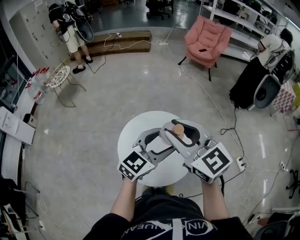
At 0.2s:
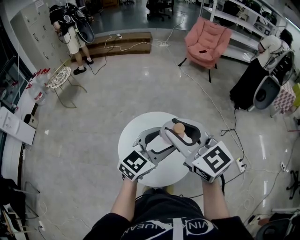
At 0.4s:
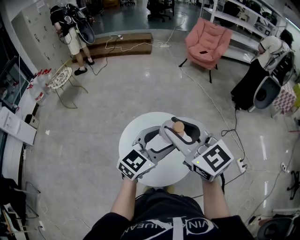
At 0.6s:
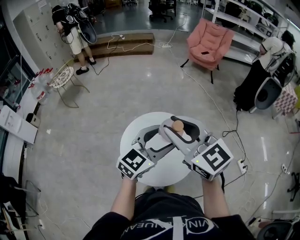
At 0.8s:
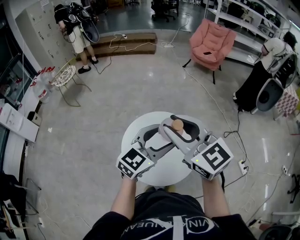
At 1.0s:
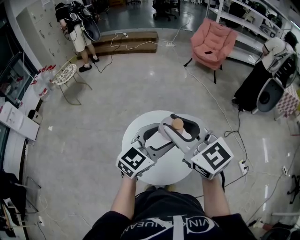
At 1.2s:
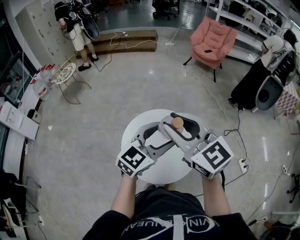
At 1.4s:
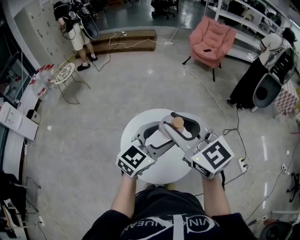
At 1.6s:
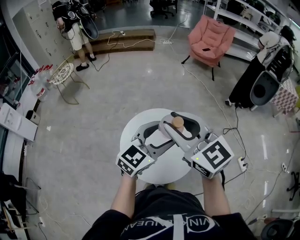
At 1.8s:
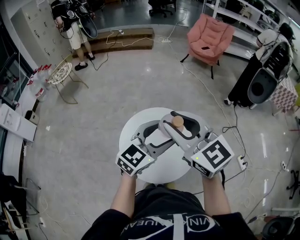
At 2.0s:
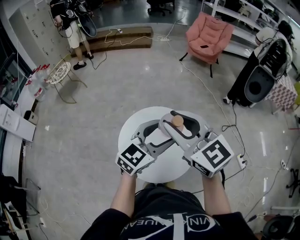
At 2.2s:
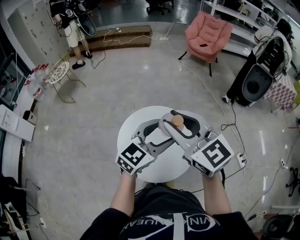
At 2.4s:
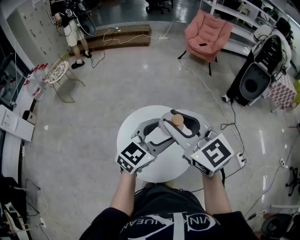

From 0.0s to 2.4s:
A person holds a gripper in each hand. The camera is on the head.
From 0.0s to 2.4s: There are only small adjustments of the grippers.

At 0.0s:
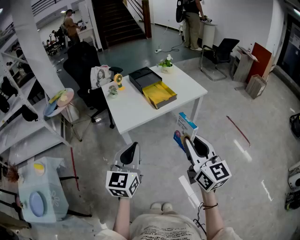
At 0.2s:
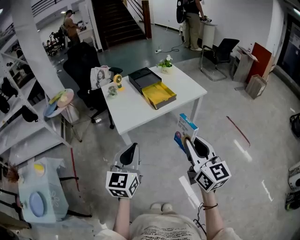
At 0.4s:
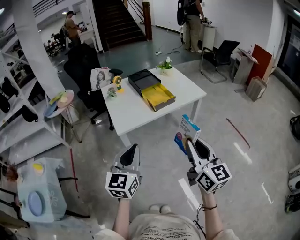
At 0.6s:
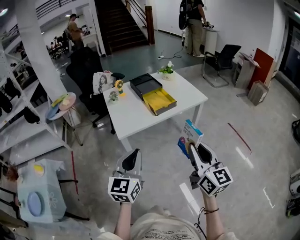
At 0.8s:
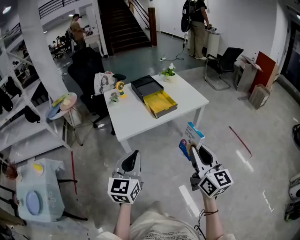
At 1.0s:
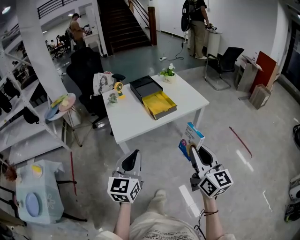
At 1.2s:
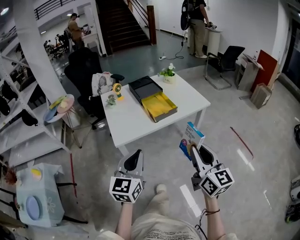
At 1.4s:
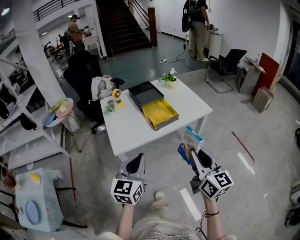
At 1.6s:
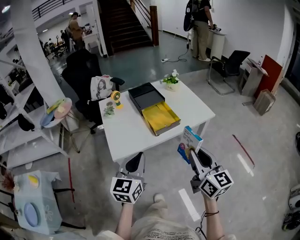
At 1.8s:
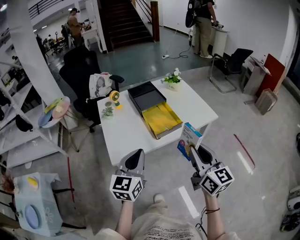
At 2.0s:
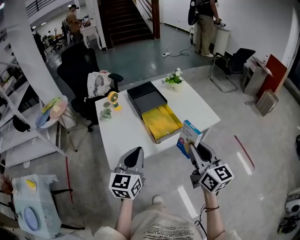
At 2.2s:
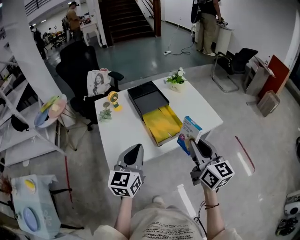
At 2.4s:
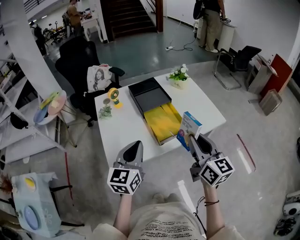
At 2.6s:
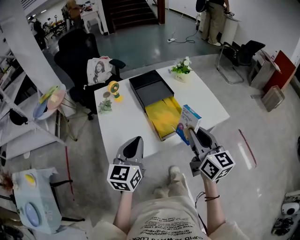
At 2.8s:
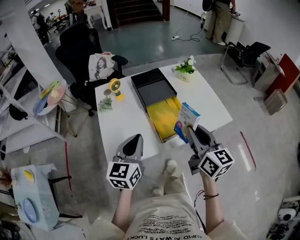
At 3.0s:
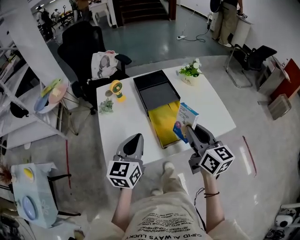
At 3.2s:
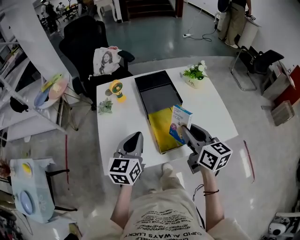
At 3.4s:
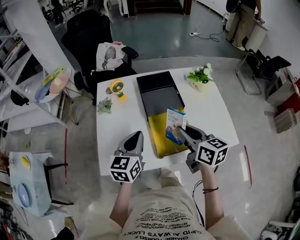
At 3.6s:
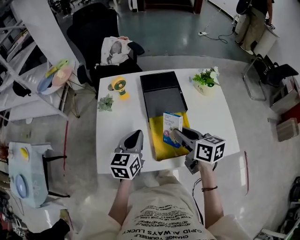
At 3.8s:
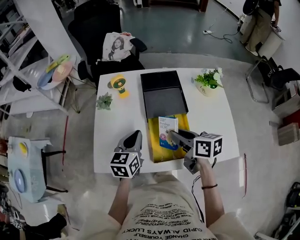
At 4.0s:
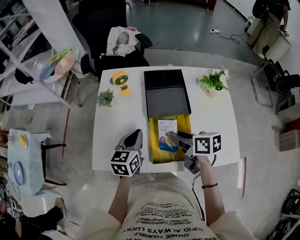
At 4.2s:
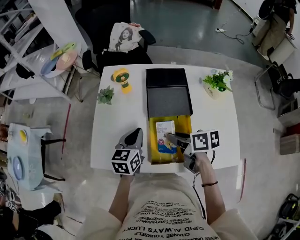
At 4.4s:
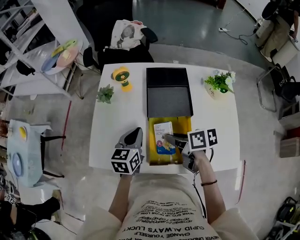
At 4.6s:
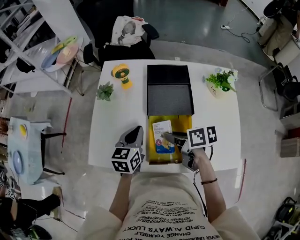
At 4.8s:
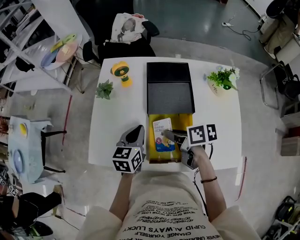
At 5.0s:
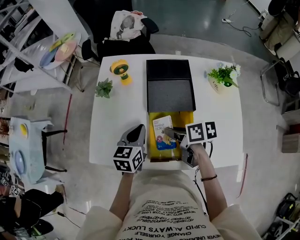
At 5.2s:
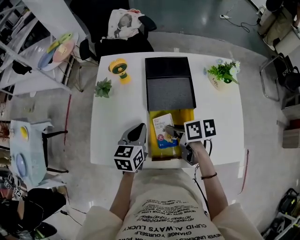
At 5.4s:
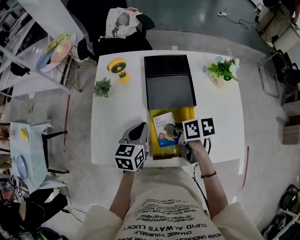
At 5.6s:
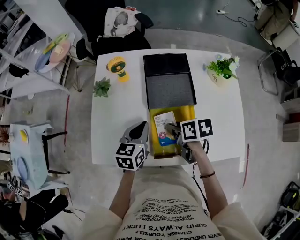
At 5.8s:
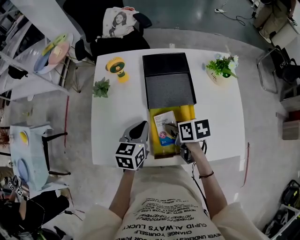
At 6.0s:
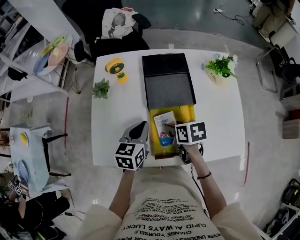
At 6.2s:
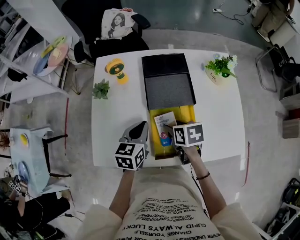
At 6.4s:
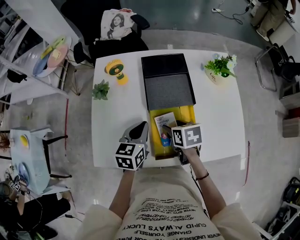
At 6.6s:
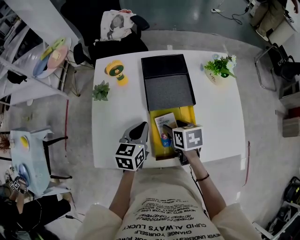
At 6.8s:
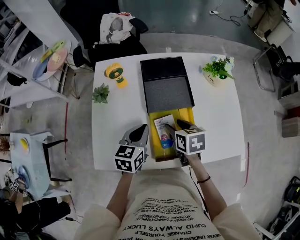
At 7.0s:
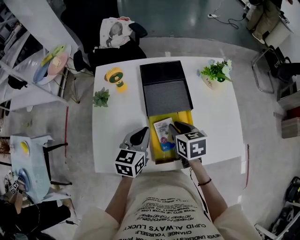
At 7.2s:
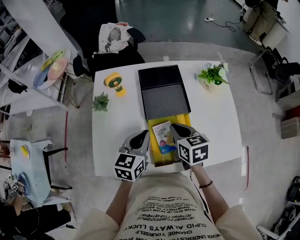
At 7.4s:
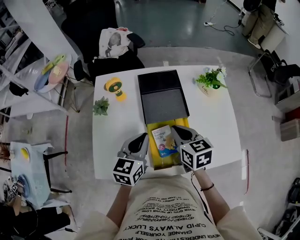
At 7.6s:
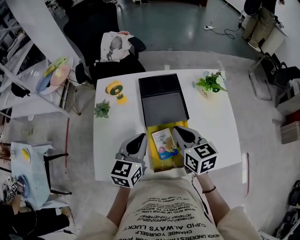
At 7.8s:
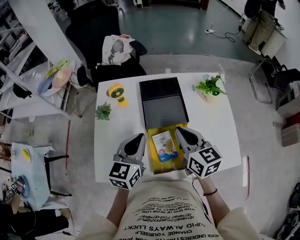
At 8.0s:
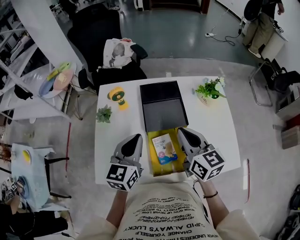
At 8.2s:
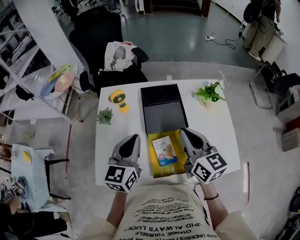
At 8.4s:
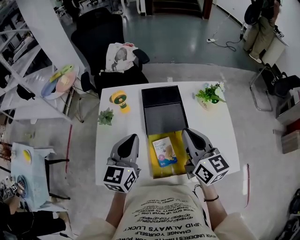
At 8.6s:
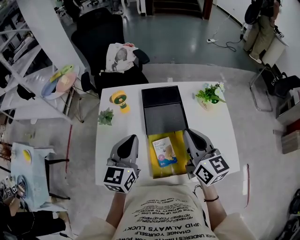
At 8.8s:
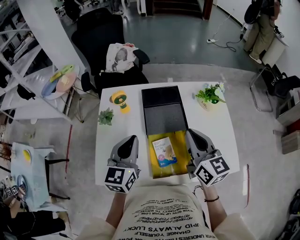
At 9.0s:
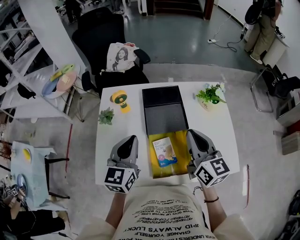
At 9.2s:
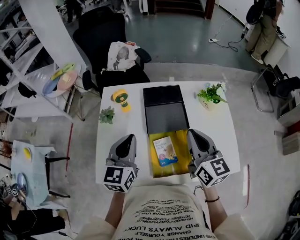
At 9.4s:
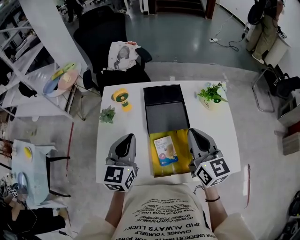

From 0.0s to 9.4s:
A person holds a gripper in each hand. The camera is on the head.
From 0.0s to 1.6s: Both grippers travel together forward, some 15 cm.
From 1.6s to 3.2s: The grippers both shift forward by roughly 30 cm. The right gripper swivels roughly 30 degrees.
From 3.2s to 4.8s: Both grippers travel together downward, about 15 cm. The right gripper swivels roughly 60 degrees; the left gripper turns by roughly 20 degrees.
From 4.8s to 6.2s: The right gripper changes its angle by approximately 30 degrees, and opens its fingers.
From 6.2s to 7.8s: Both grippers travel together upward, some 15 cm. The right gripper tilts its fingers roughly 40 degrees upward, and closes up.
From 7.8s to 9.4s: The left gripper changes place by about 5 cm. The right gripper moves upward, some 5 cm.

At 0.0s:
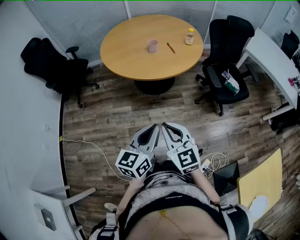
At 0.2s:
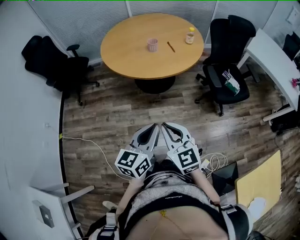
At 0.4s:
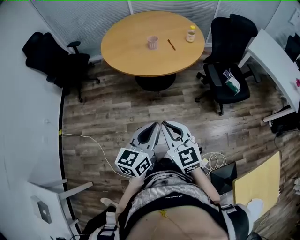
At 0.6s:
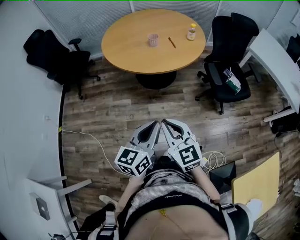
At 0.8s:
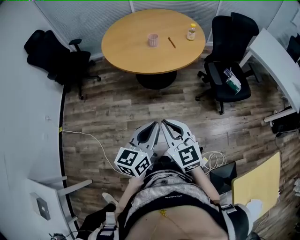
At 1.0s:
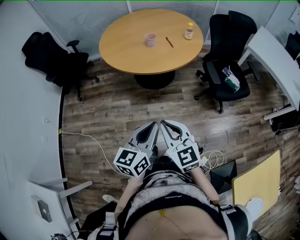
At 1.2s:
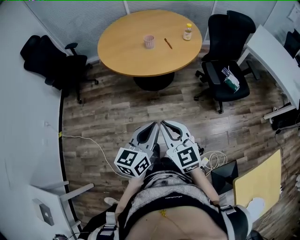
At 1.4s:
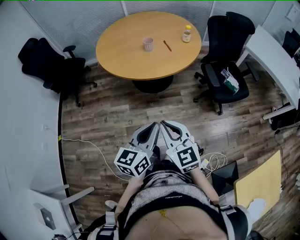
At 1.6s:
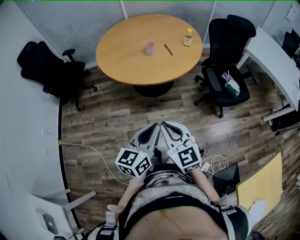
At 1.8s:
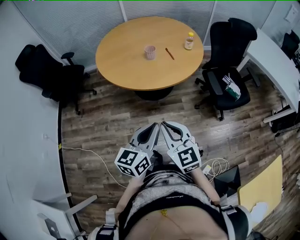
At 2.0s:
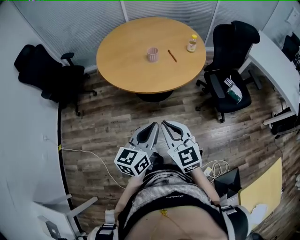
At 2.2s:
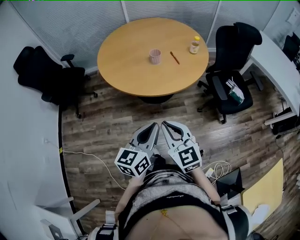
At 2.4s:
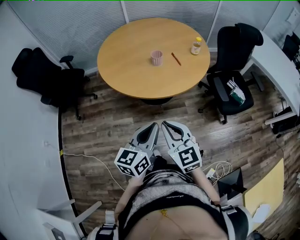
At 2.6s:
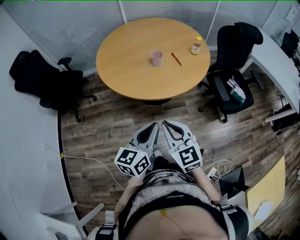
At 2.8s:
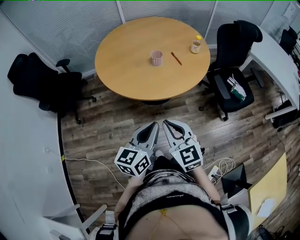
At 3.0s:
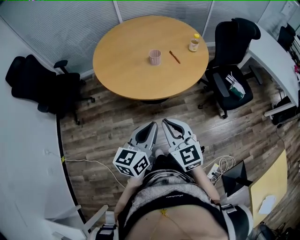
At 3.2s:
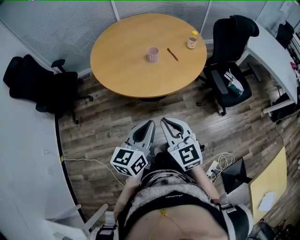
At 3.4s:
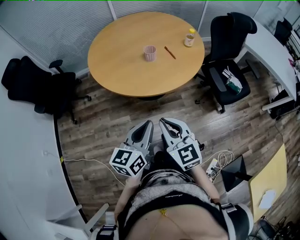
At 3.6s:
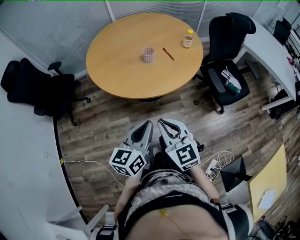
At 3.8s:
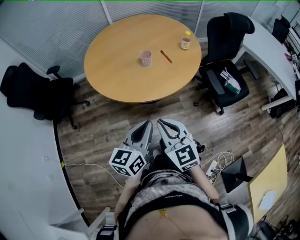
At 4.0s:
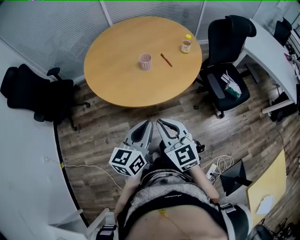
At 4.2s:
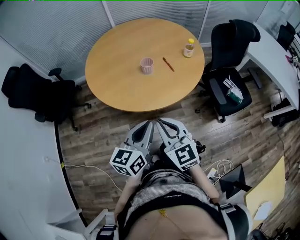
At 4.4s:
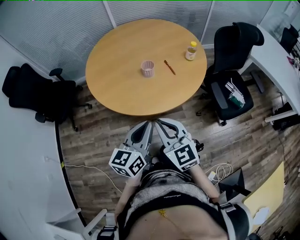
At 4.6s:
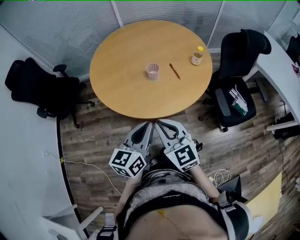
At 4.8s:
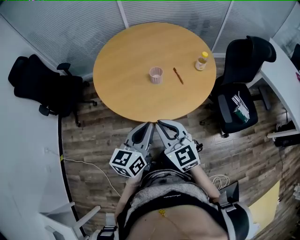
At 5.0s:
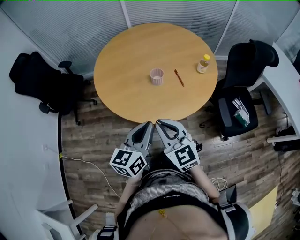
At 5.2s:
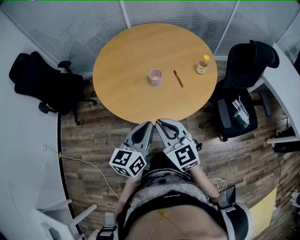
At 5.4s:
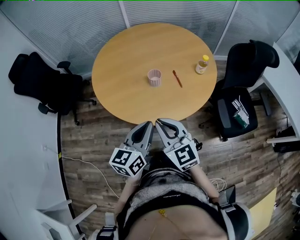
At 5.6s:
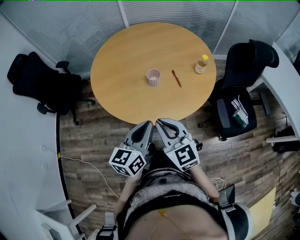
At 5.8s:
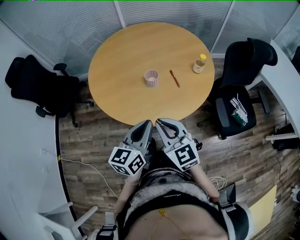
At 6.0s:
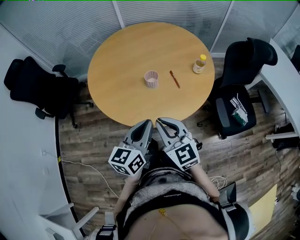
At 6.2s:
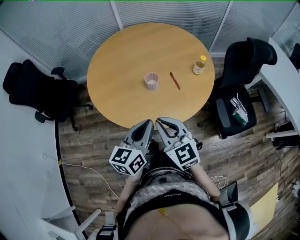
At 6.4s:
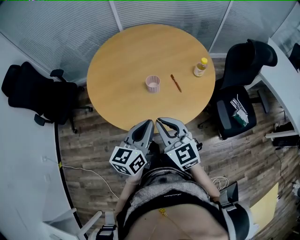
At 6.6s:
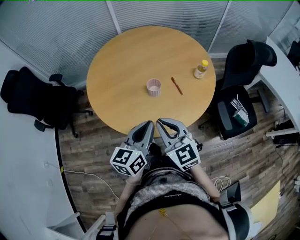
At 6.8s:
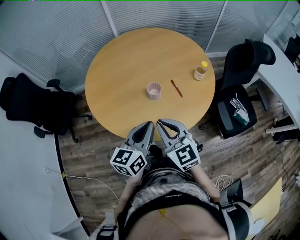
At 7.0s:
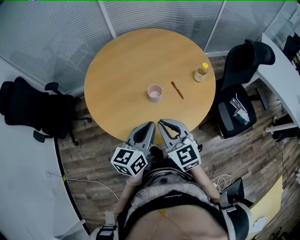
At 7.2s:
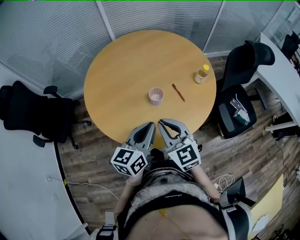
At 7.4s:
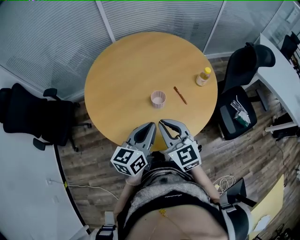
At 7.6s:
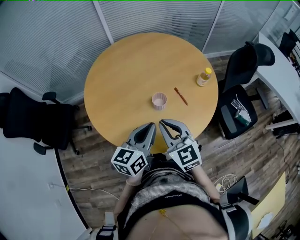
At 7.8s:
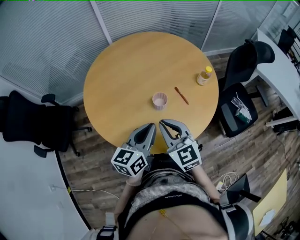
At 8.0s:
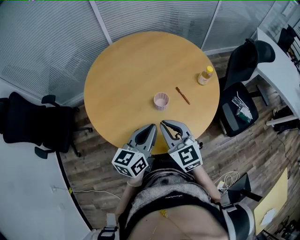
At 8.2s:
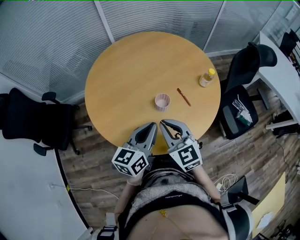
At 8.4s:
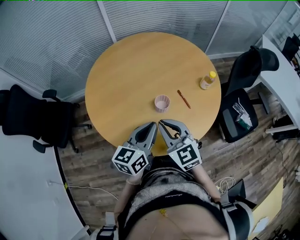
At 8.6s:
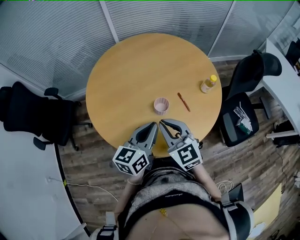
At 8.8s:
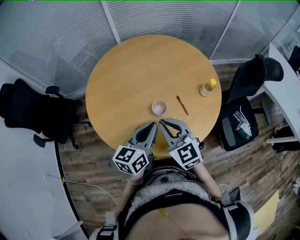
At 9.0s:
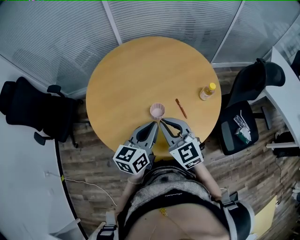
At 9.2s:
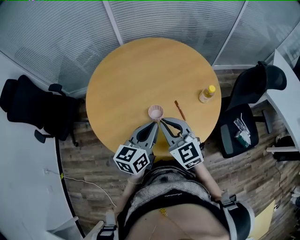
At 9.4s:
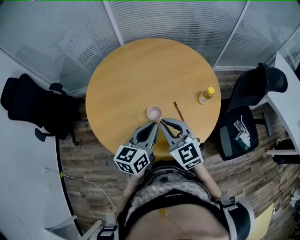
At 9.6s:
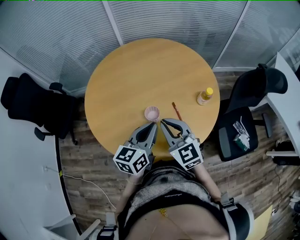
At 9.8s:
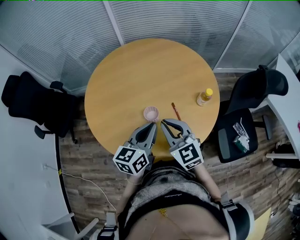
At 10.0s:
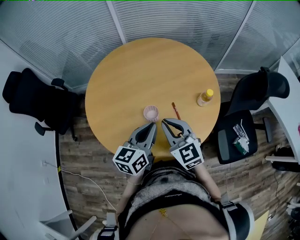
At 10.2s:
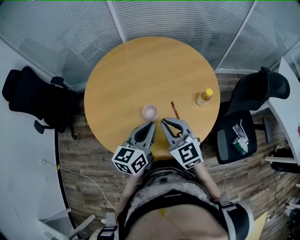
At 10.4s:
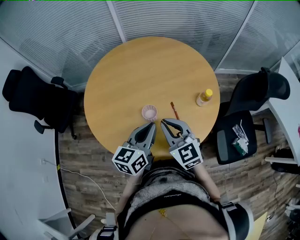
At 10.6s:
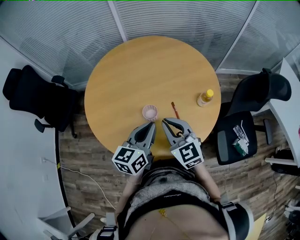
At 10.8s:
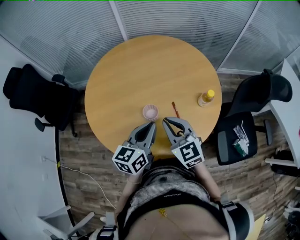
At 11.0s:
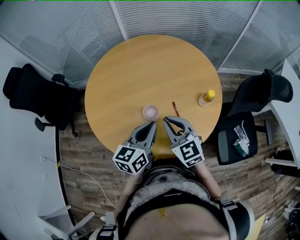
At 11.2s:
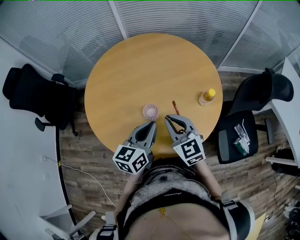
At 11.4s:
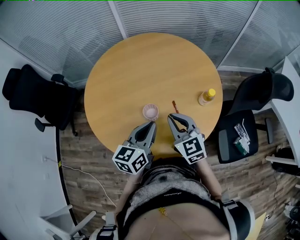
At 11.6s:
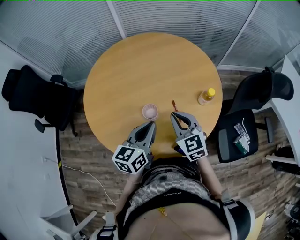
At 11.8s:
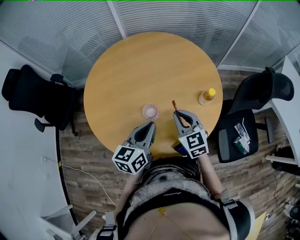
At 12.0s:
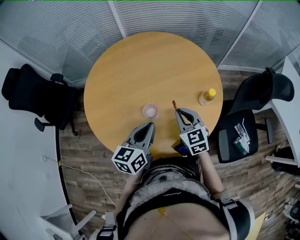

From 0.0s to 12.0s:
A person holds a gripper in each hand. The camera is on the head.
From 0.0s to 1.6s: The two grippers go roughly 5 cm forward.
From 1.6s to 3.0s: Both grippers travel together forward and to the left, some 15 cm.
From 3.0s to 4.4s: Both grippers move forward, approximately 10 cm.
From 4.4s to 6.0s: The two grippers go approximately 10 cm forward.
From 6.0s to 7.6s: The grippers both shift forward and to the left by approximately 15 cm.
From 7.6s to 9.0s: The grippers both shift forward by roughly 5 cm.
From 9.0s to 10.4s: The two grippers go approximately 5 cm to the right.
From 10.4s to 12.0s: The right gripper goes about 10 cm downward, forward and to the right.
